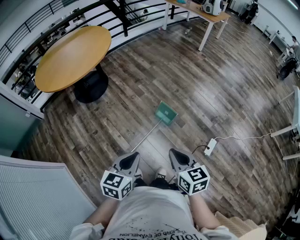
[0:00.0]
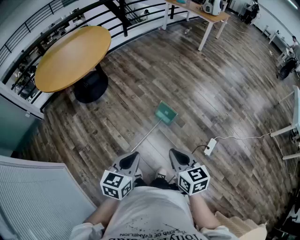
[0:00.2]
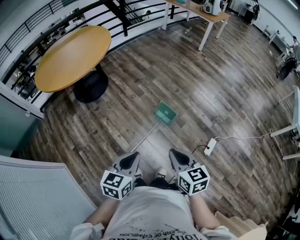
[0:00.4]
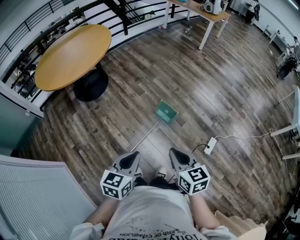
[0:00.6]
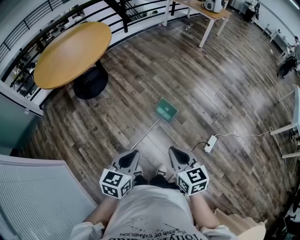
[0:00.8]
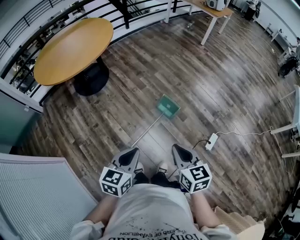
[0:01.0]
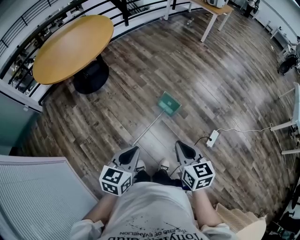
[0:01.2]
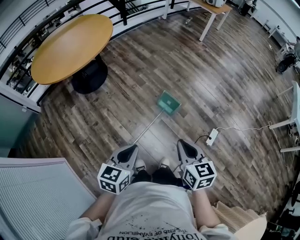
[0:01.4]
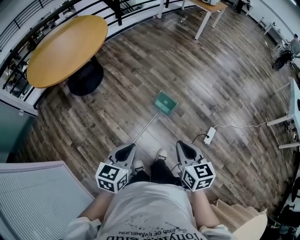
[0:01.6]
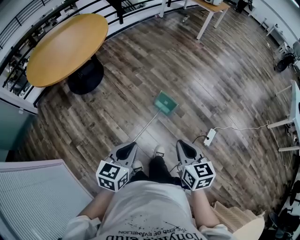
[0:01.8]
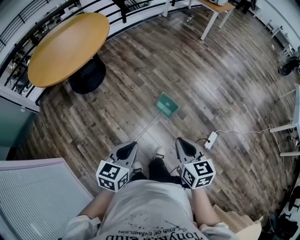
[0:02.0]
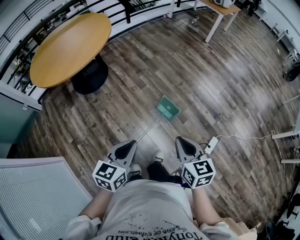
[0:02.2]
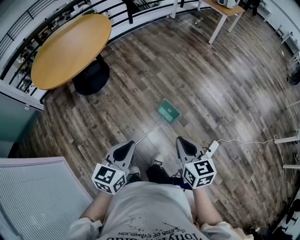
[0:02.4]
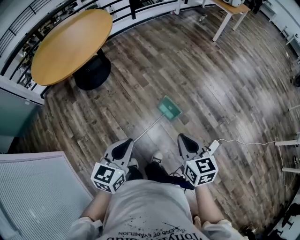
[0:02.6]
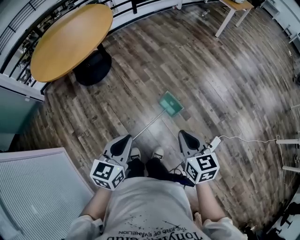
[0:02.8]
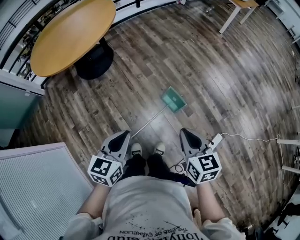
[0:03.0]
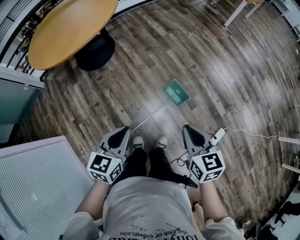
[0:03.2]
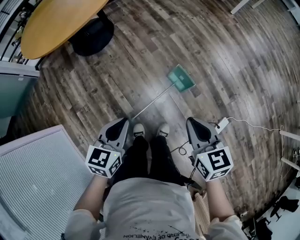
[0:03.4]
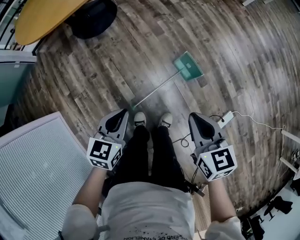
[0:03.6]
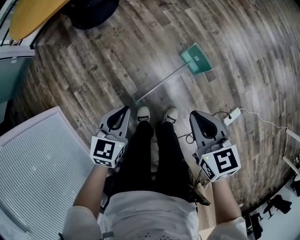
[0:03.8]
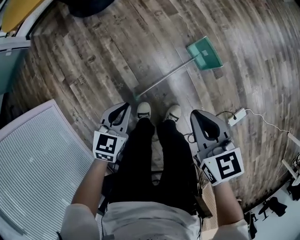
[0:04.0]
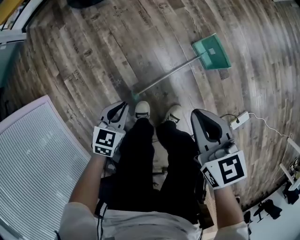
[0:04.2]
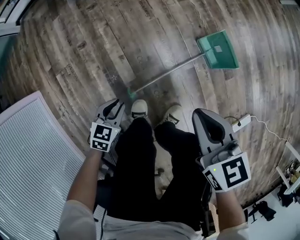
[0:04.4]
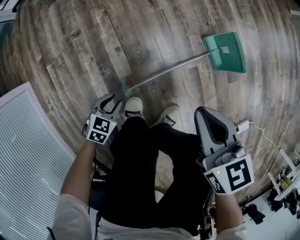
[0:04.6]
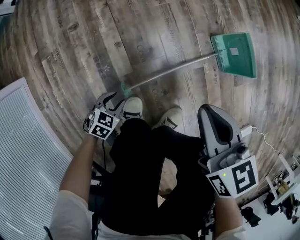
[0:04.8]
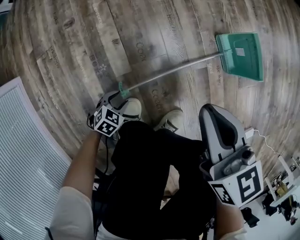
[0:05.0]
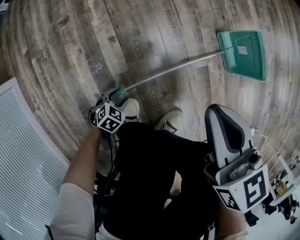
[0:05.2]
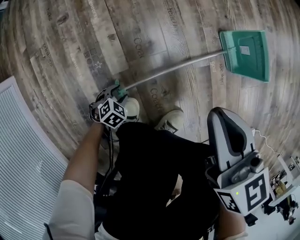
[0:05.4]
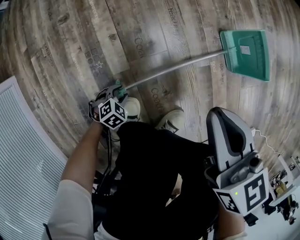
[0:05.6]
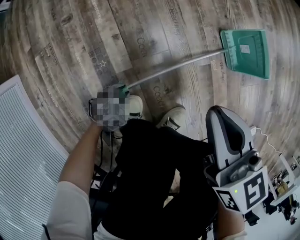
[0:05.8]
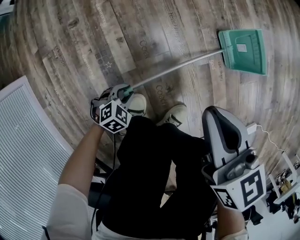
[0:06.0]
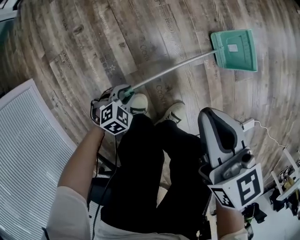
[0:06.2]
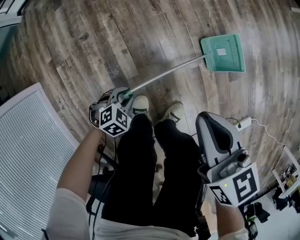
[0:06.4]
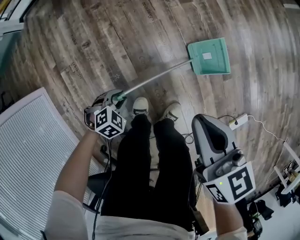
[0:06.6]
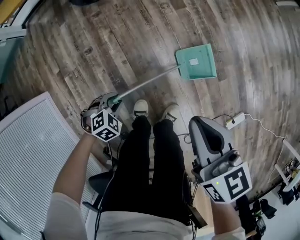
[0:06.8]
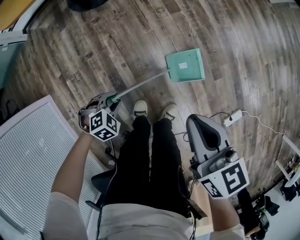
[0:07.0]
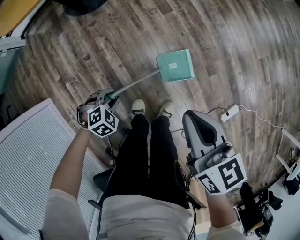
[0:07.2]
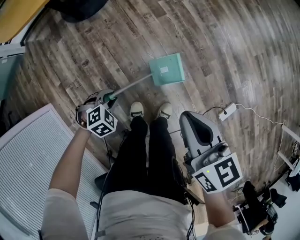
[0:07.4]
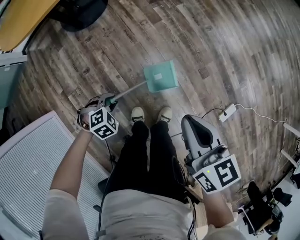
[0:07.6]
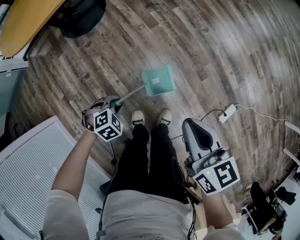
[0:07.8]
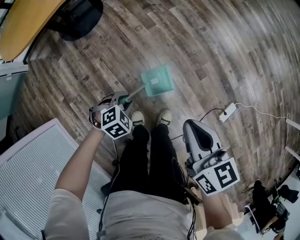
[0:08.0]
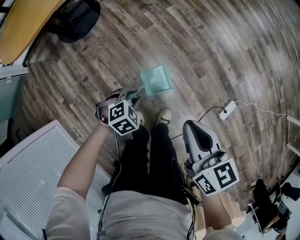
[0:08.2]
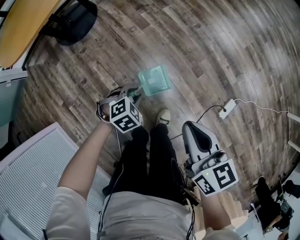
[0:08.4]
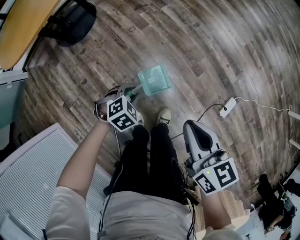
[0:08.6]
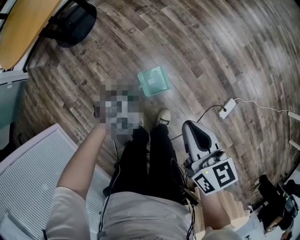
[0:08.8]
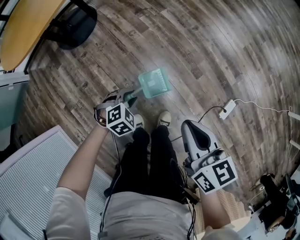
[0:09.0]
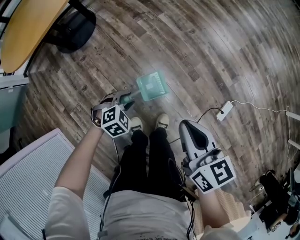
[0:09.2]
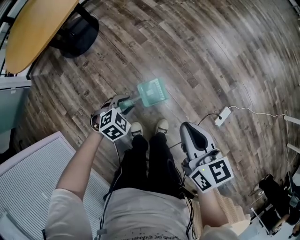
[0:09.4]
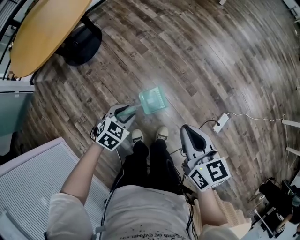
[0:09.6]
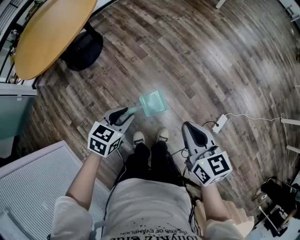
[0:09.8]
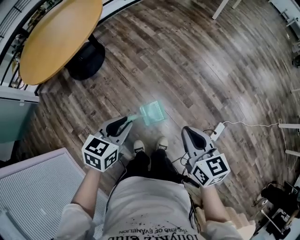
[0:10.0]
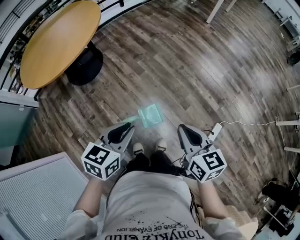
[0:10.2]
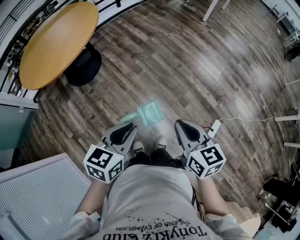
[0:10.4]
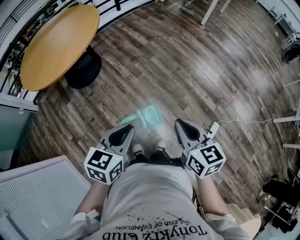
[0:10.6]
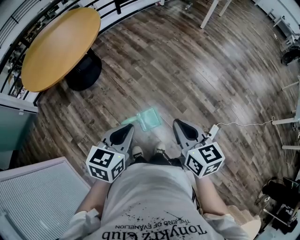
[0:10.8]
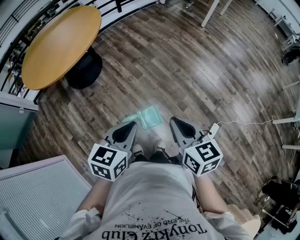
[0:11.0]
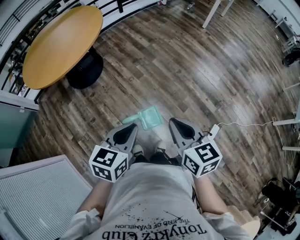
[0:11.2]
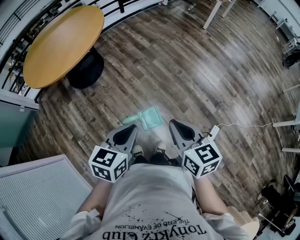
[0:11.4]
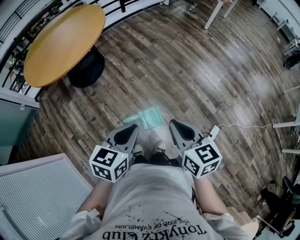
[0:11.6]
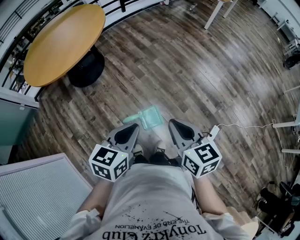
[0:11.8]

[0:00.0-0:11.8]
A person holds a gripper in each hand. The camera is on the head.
0:00.0 to 0:01.4: The left gripper goes about 5 cm to the left.
0:01.4 to 0:03.0: Both grippers move forward, some 15 cm.
0:03.0 to 0:04.4: The left gripper heads downward, covering roughly 60 cm, and rotates about 30 degrees. Meanwhile the right gripper travels downward by approximately 35 cm, and changes its angle by roughly 20 degrees.
0:04.4 to 0:06.0: The right gripper shifts approximately 10 cm downward. The left gripper moves downward, about 20 cm, changes its angle by about 30 degrees, and opens and closes again.
0:06.0 to 0:07.4: Both grippers move upward, about 35 cm. The left gripper rotates approximately 20 degrees.
0:07.4 to 0:08.8: The left gripper shifts by about 20 cm. Meanwhile the right gripper moves about 10 cm.
0:08.8 to 0:10.4: The right gripper moves upward, some 15 cm. Meanwhile the left gripper heads upward, covering approximately 40 cm, and tips its fingers upward by approximately 40 degrees.
0:10.4 to 0:11.8: The grippers make only small movements.

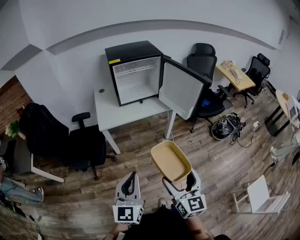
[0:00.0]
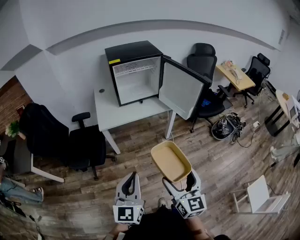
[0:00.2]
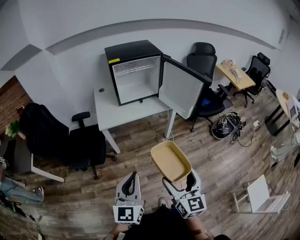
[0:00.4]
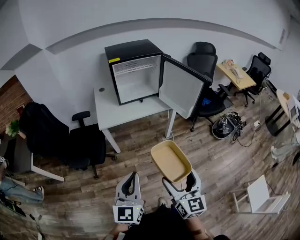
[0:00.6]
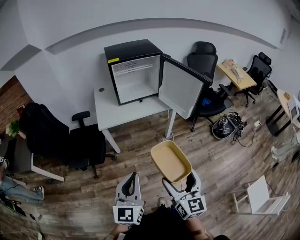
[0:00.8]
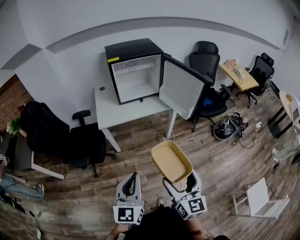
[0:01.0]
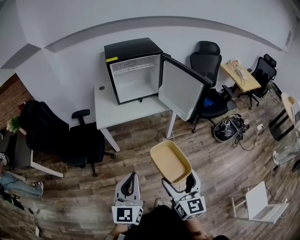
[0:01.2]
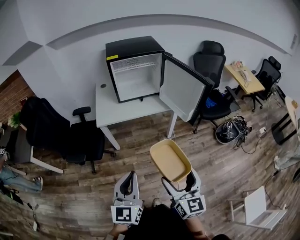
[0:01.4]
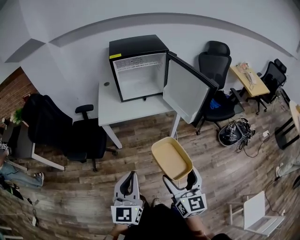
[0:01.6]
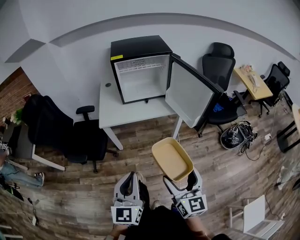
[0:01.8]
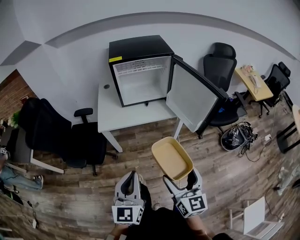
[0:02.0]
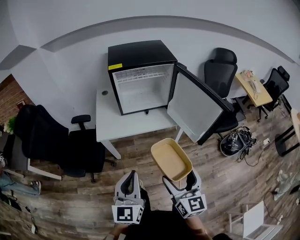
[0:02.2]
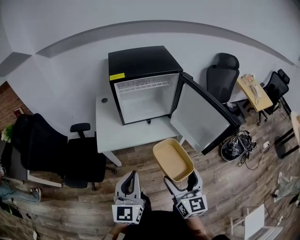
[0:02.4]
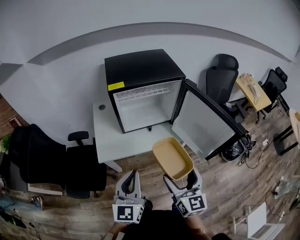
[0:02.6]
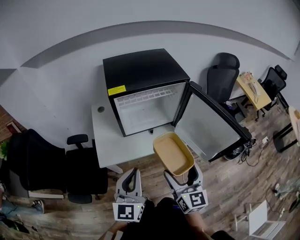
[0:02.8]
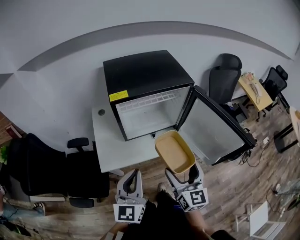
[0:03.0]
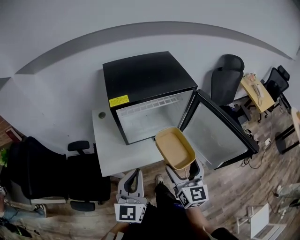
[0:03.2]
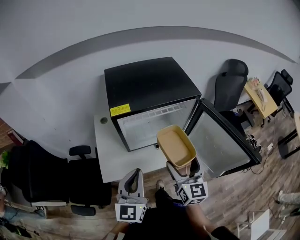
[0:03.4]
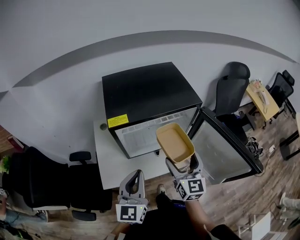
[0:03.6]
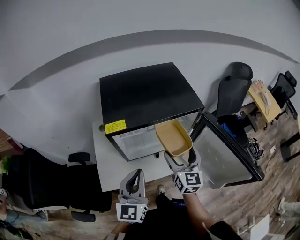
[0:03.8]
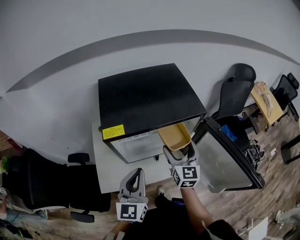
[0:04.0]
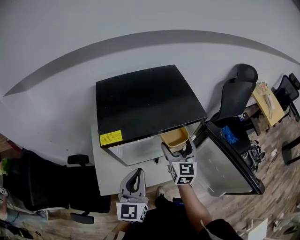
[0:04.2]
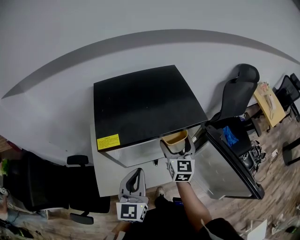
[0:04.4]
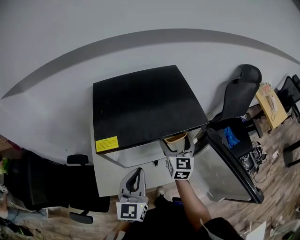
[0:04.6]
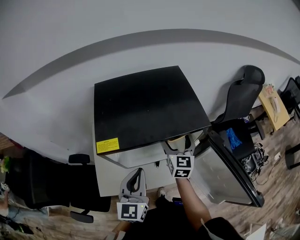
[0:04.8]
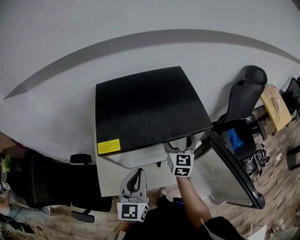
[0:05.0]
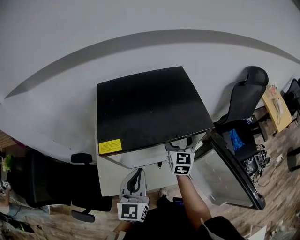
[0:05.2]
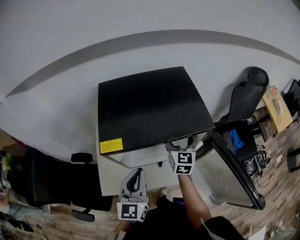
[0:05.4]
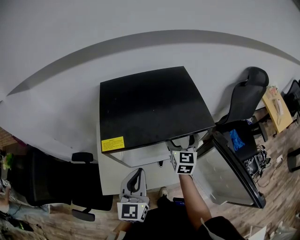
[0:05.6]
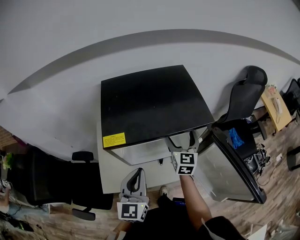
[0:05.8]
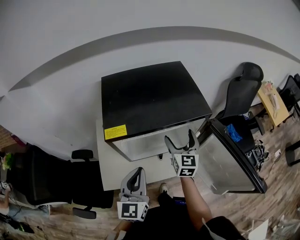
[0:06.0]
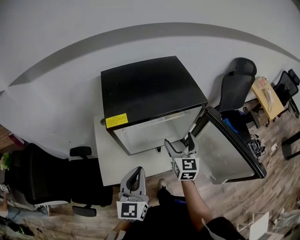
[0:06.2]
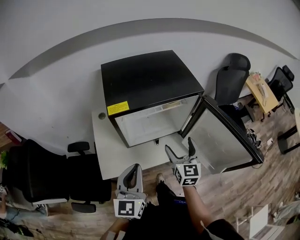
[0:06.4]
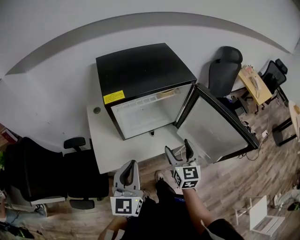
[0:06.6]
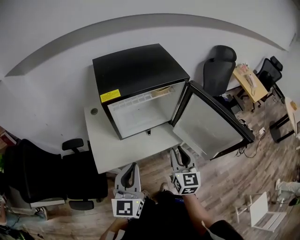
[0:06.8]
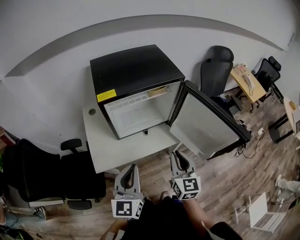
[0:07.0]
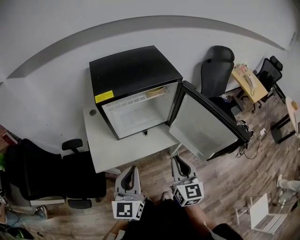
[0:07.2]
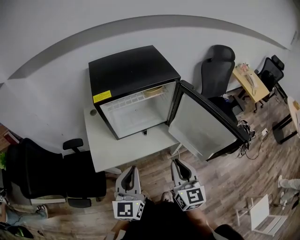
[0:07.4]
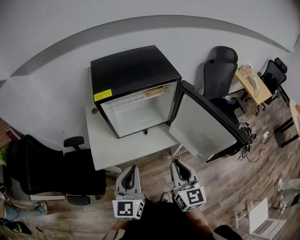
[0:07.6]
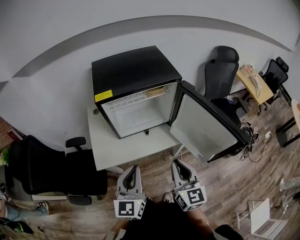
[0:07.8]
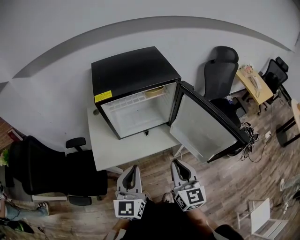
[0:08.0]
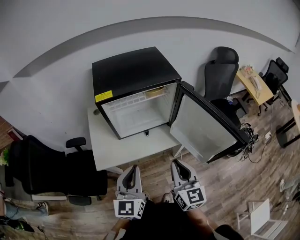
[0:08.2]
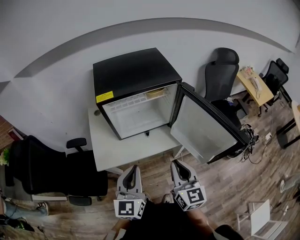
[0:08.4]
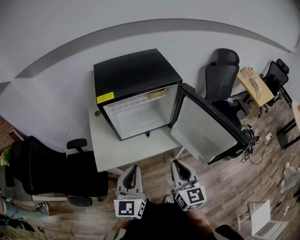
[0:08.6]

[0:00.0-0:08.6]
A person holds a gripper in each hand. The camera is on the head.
0:00.0 to 0:01.4: The two grippers go some 5 cm to the right.
0:01.4 to 0:02.8: The two grippers go roughly 40 cm forward.
0:02.8 to 0:04.4: The left gripper travels forward by some 25 cm. Meanwhile the right gripper shifts about 40 cm forward.
0:04.4 to 0:05.8: The grippers stay close to where they were, moving slightly.
0:05.8 to 0:07.2: The left gripper travels backward by approximately 20 cm; the right gripper heads backward, covering approximately 35 cm, and closes.
0:07.2 to 0:08.6: The grippers stay close to where they were, moving slightly.

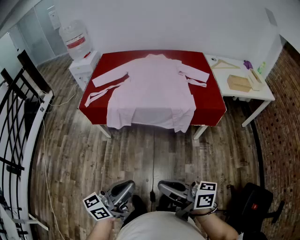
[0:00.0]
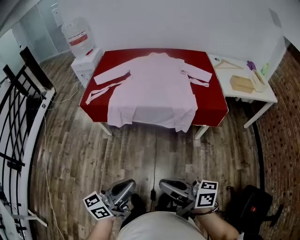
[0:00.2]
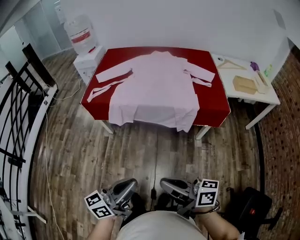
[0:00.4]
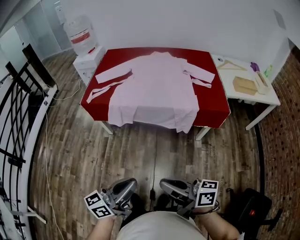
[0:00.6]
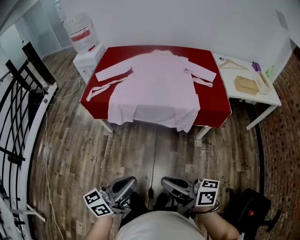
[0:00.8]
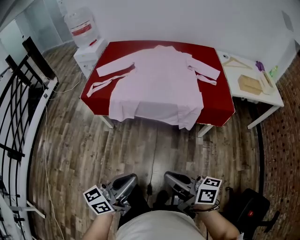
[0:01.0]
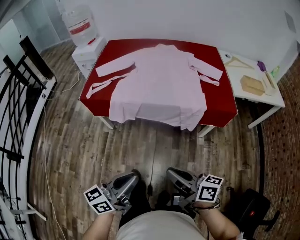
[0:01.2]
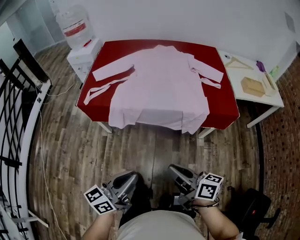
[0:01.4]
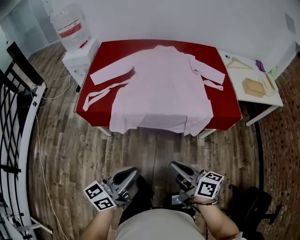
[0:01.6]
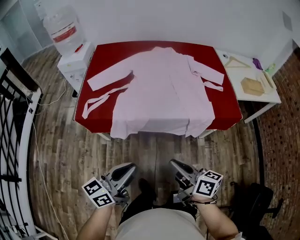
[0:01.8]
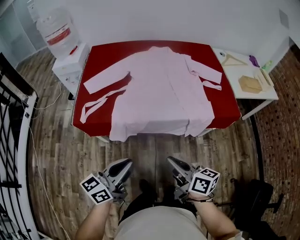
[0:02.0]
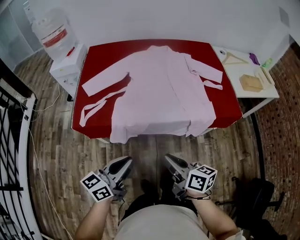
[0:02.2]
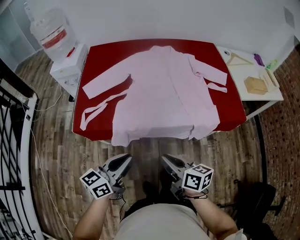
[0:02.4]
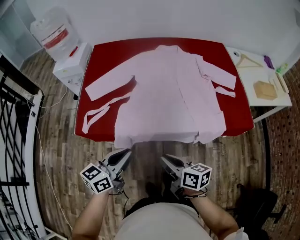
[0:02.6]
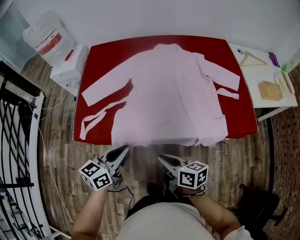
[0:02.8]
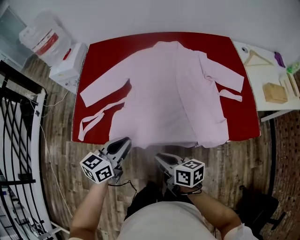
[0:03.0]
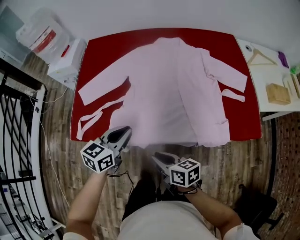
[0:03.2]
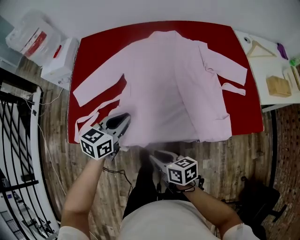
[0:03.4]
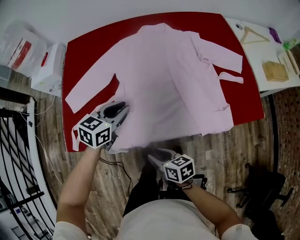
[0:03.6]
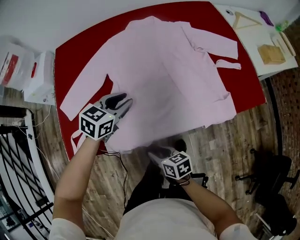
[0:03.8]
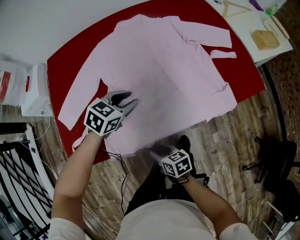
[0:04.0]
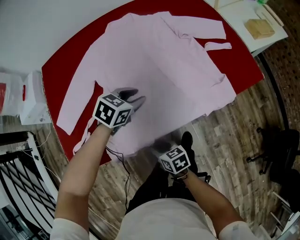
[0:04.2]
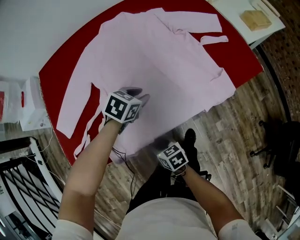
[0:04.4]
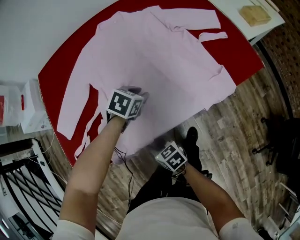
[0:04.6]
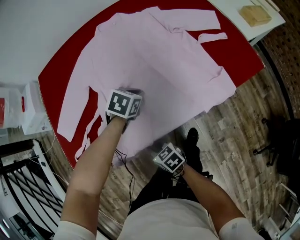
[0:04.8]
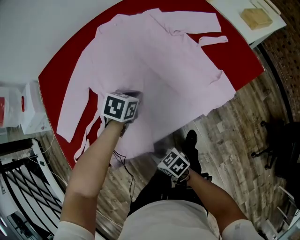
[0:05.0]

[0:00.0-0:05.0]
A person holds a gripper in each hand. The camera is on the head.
0:00.0 to 0:01.6: Both grippers travel together forward, roughly 20 cm. The right gripper rotates roughly 20 degrees.
0:01.6 to 0:03.4: The left gripper heads forward, covering some 40 cm, and tips its fingers downward by about 30 degrees; the right gripper moves forward and downward, about 25 cm, and rotates roughly 20 degrees.
0:03.4 to 0:05.0: The right gripper shifts roughly 10 cm downward. Meanwhile the left gripper changes place by roughly 20 cm, rotates roughly 40 degrees, and opens and closes again.
